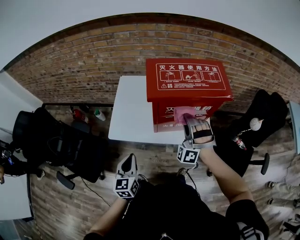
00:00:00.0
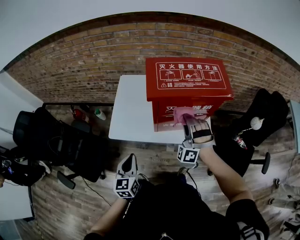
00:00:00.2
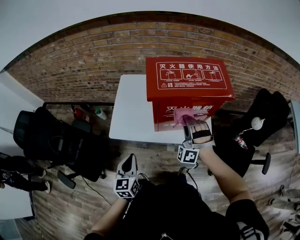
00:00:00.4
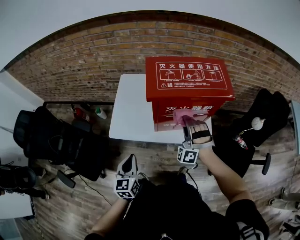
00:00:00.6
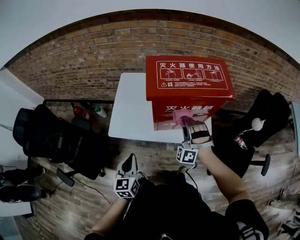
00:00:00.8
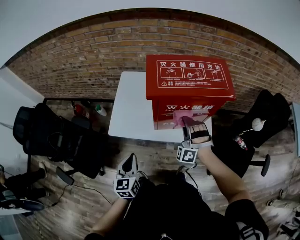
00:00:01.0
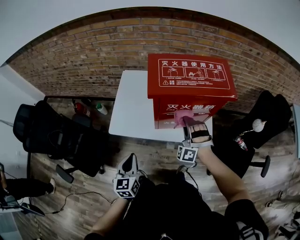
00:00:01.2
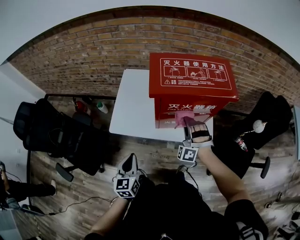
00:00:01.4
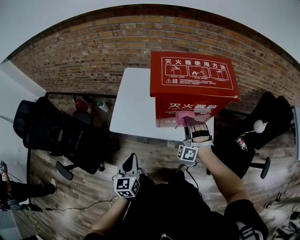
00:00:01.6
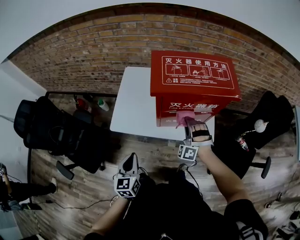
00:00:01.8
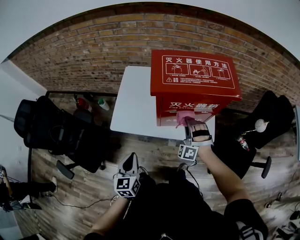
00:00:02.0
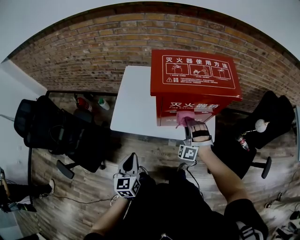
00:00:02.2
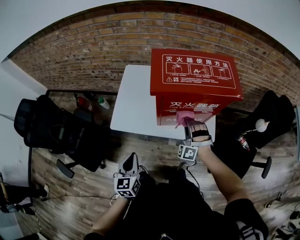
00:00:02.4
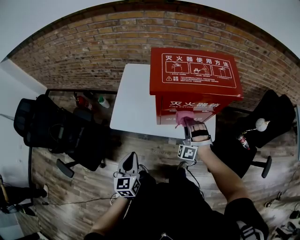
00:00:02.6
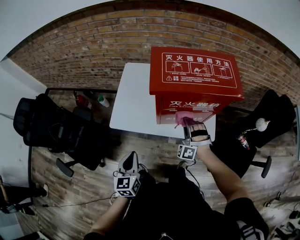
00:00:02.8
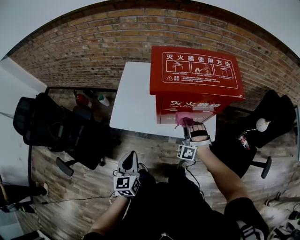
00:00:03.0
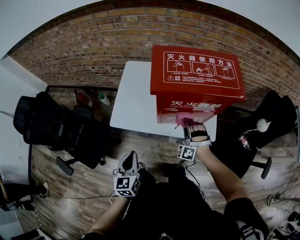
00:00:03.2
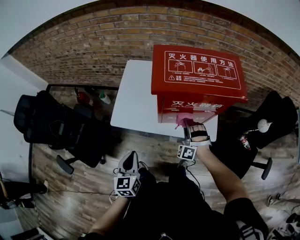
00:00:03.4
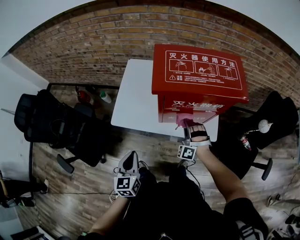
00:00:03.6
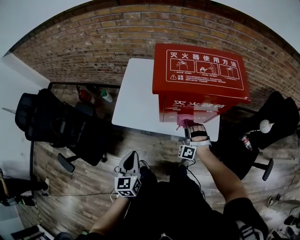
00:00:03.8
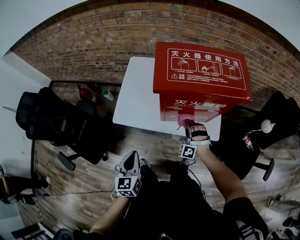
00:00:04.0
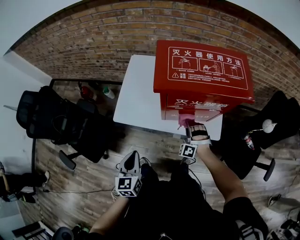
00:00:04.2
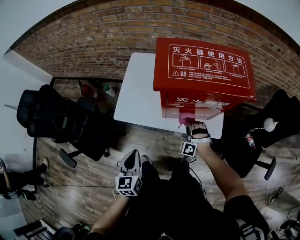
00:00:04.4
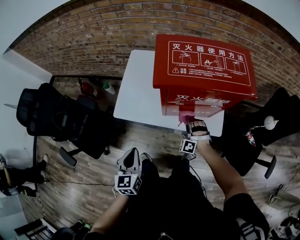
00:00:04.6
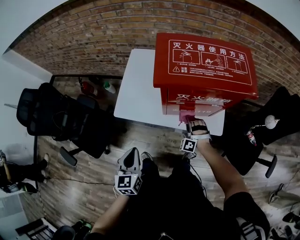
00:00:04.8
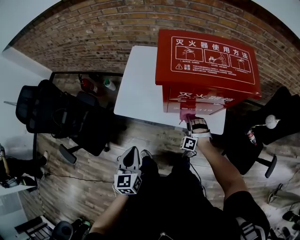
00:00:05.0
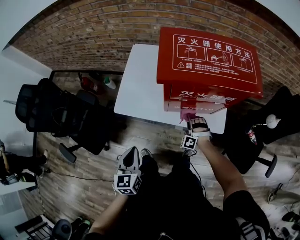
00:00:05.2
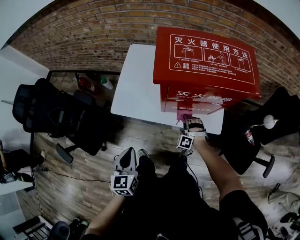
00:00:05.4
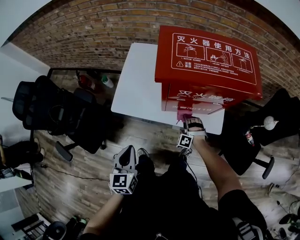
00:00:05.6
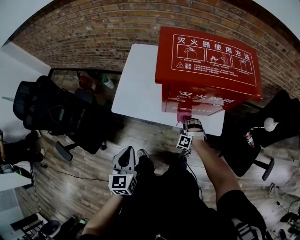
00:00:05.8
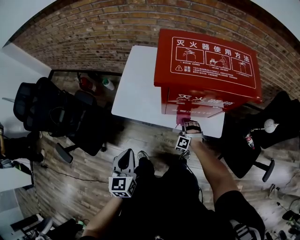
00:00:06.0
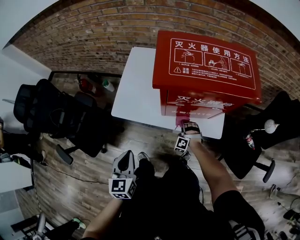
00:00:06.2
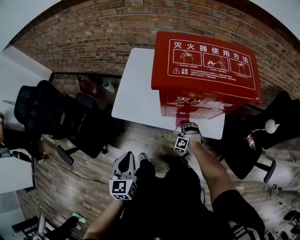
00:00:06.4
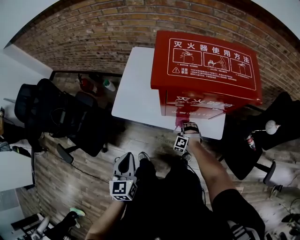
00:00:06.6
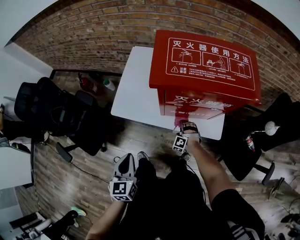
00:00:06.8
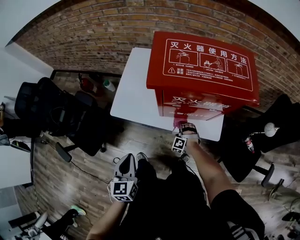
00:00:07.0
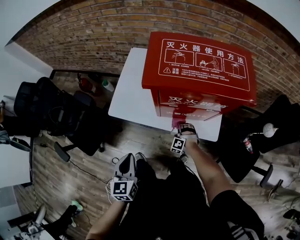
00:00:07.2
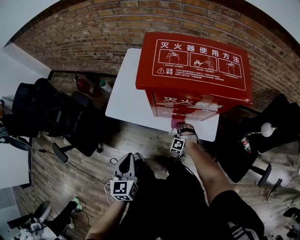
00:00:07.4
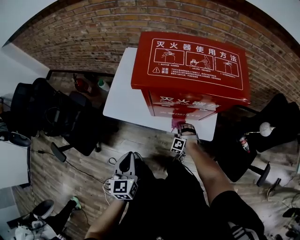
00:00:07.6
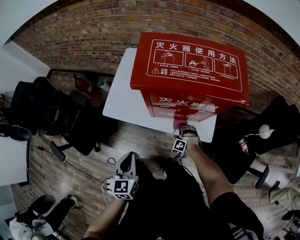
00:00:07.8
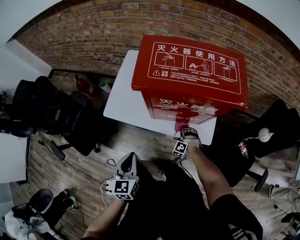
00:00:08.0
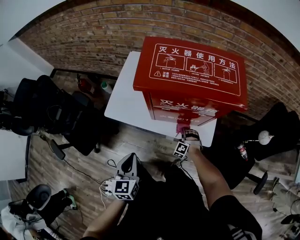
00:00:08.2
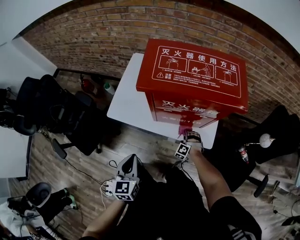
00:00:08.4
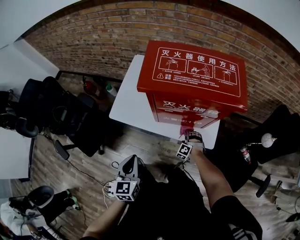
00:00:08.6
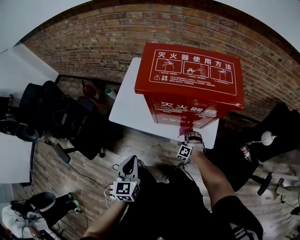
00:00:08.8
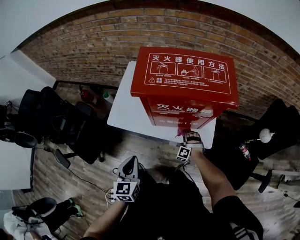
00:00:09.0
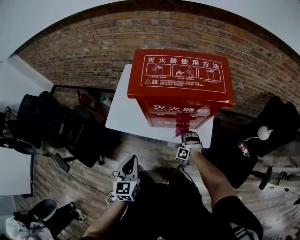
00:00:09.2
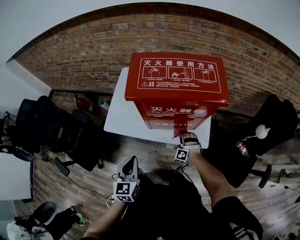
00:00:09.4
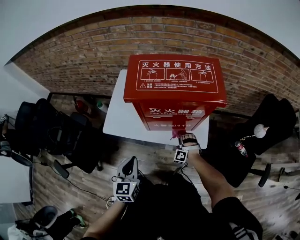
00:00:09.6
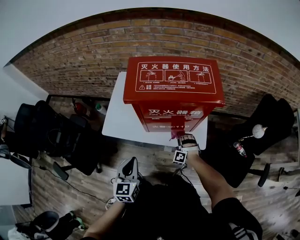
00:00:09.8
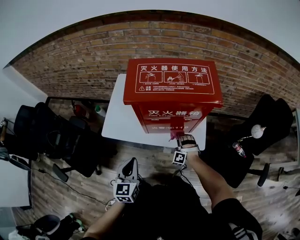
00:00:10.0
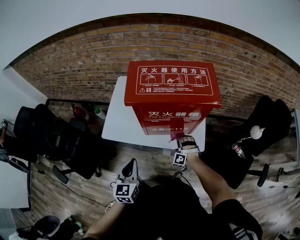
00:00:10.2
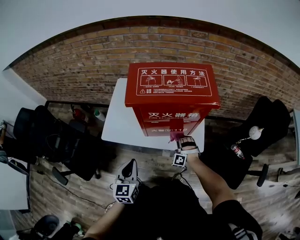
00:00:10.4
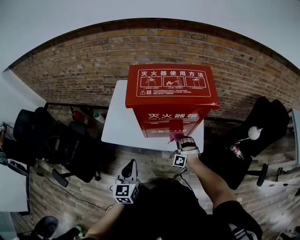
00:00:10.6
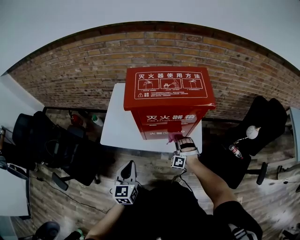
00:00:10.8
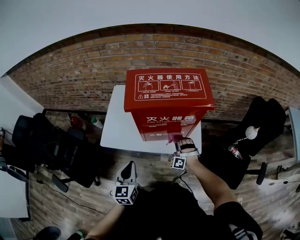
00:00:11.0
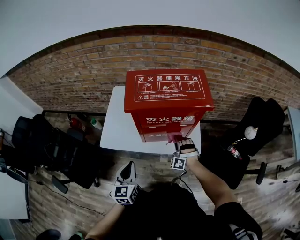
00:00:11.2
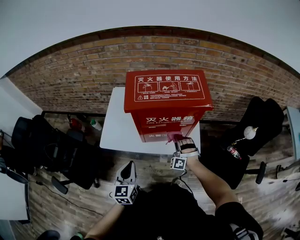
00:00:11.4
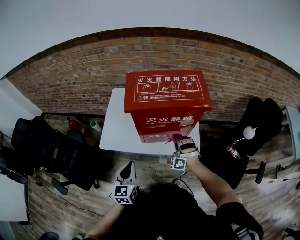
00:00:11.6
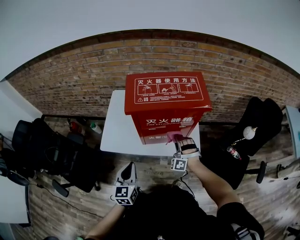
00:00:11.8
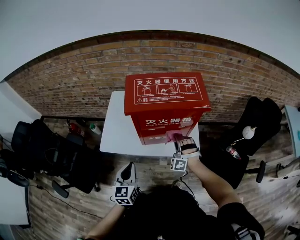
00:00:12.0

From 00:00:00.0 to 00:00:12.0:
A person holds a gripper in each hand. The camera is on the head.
From 00:00:06.0 to 00:00:07.6: The left gripper ends up some 5 cm from where it was.

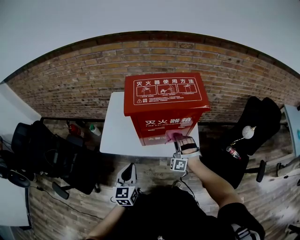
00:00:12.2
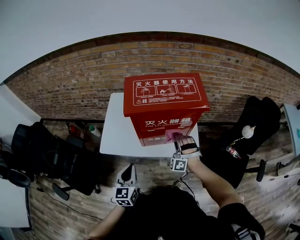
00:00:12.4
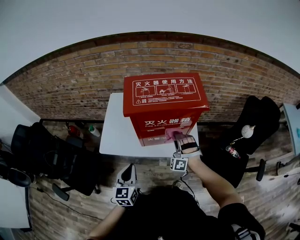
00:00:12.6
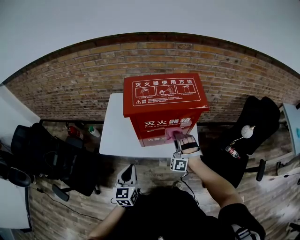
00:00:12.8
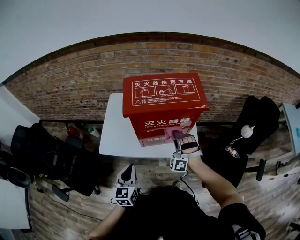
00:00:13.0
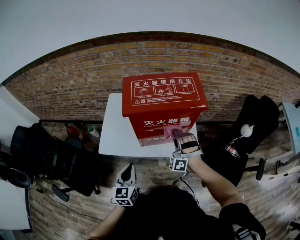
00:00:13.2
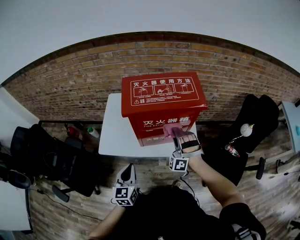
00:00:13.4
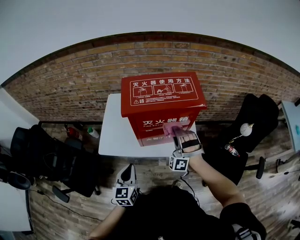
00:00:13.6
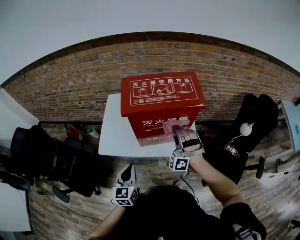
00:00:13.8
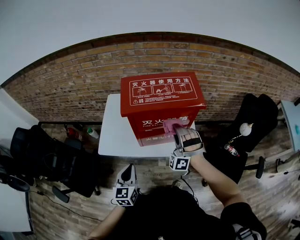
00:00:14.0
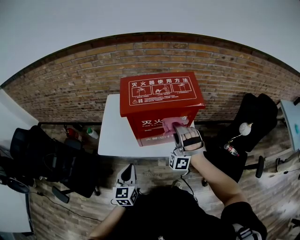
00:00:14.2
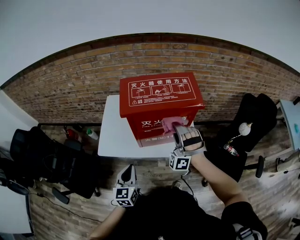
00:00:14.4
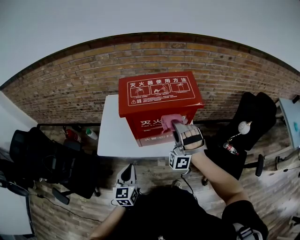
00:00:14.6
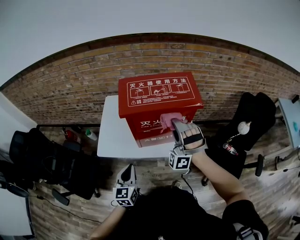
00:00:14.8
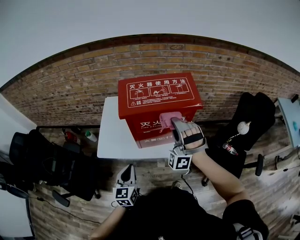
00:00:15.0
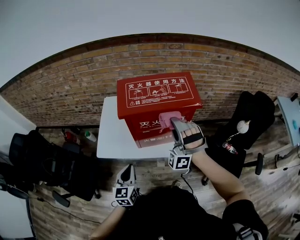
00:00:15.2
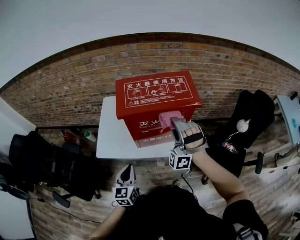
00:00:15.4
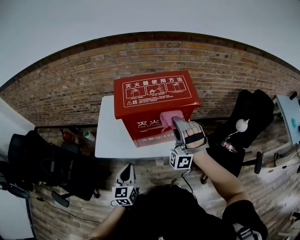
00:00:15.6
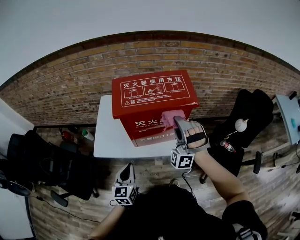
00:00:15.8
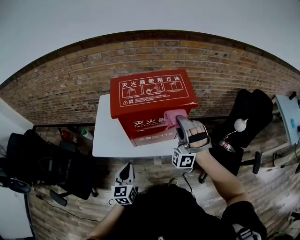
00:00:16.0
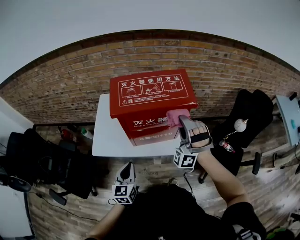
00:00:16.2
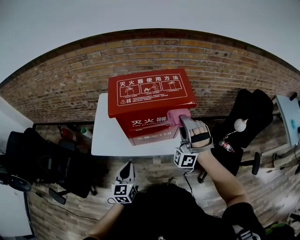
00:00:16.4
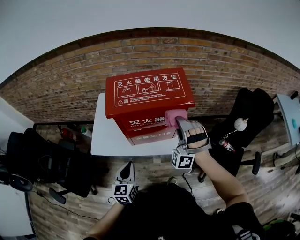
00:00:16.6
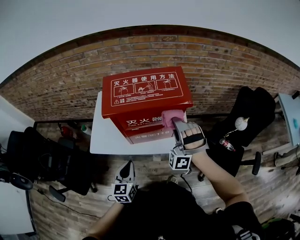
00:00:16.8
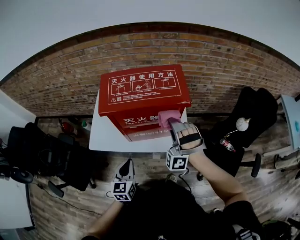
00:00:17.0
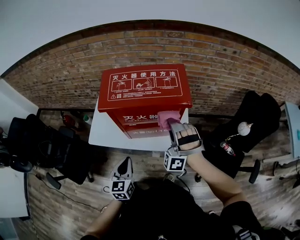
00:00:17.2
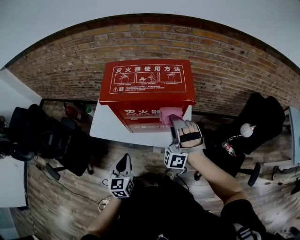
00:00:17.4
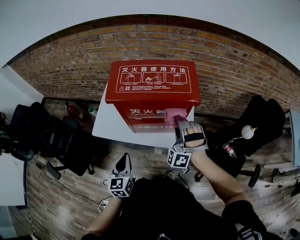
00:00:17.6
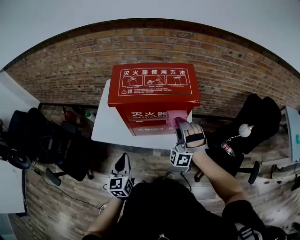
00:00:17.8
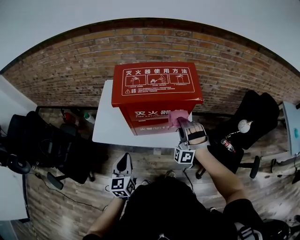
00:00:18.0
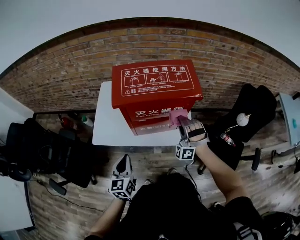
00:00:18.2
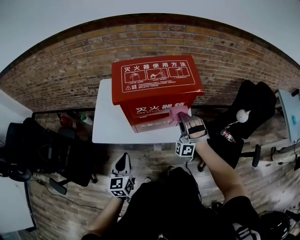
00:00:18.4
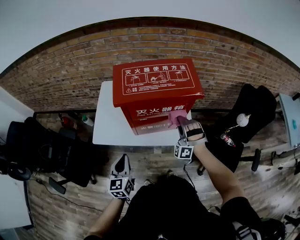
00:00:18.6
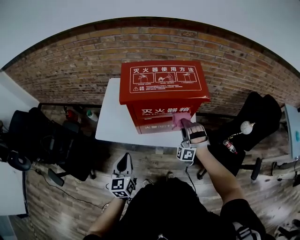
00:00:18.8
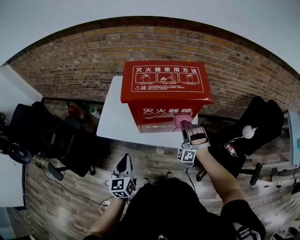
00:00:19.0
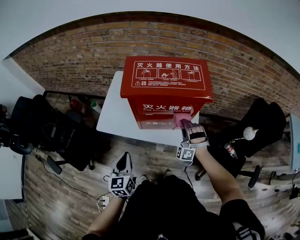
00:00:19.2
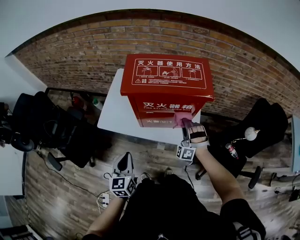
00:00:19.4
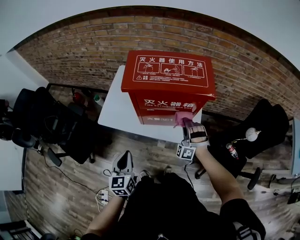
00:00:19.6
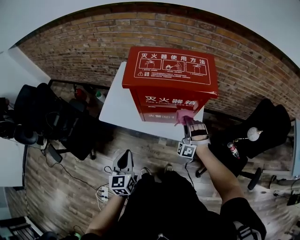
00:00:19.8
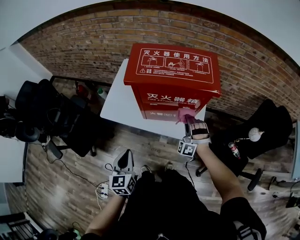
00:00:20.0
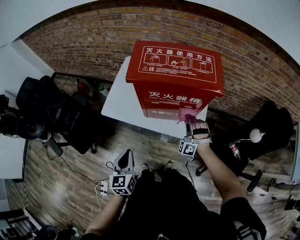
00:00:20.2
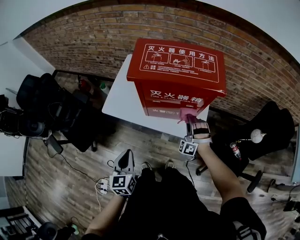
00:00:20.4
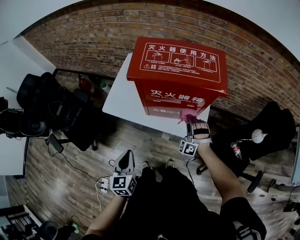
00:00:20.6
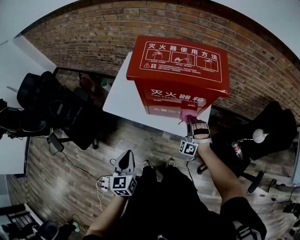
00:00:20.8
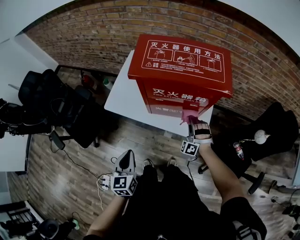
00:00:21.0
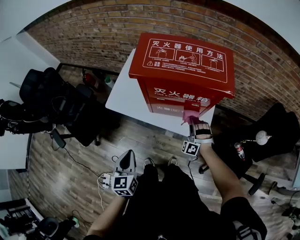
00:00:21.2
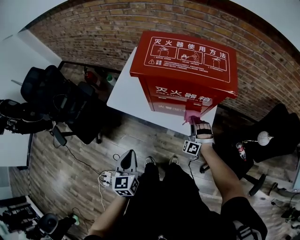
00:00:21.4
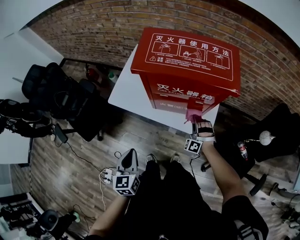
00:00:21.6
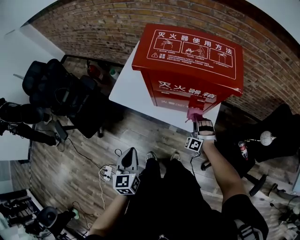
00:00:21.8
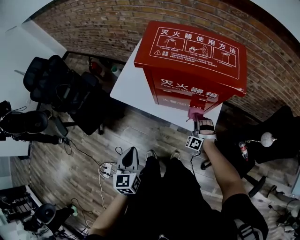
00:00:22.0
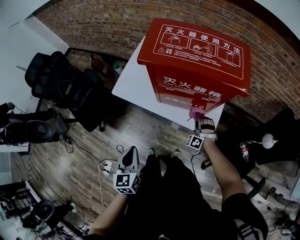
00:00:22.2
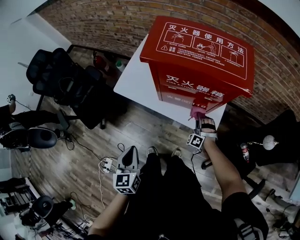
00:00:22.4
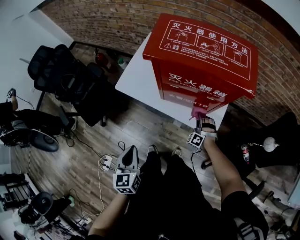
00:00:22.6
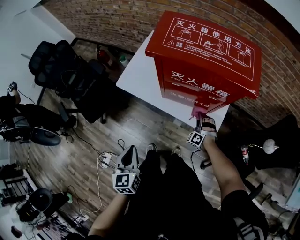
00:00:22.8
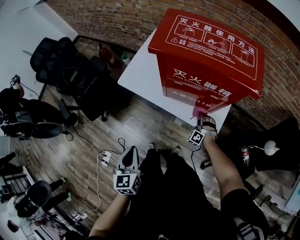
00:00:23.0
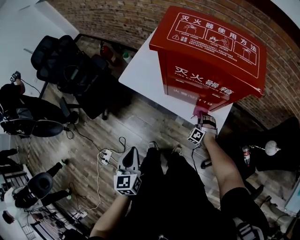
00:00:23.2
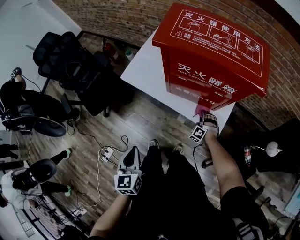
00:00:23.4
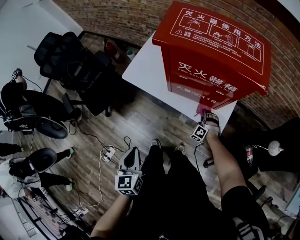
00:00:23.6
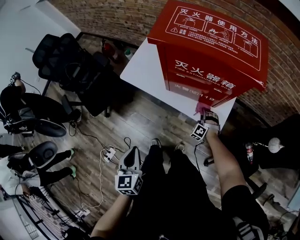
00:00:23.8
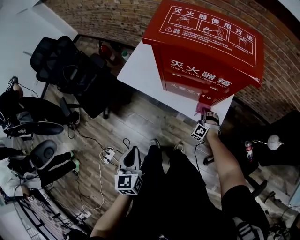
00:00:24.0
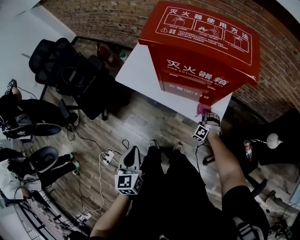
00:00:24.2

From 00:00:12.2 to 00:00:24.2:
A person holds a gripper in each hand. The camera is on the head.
From 00:00:18.2 to 00:00:19.8: The left gripper changes place by some 5 cm.
From 00:00:22.6 to 00:00:24.2: The left gripper moves about 5 cm.

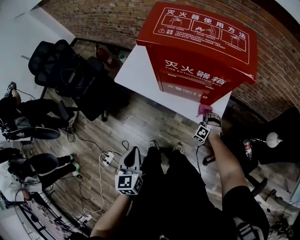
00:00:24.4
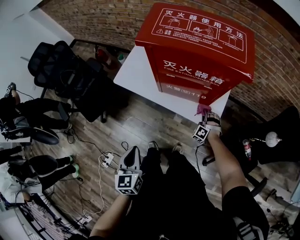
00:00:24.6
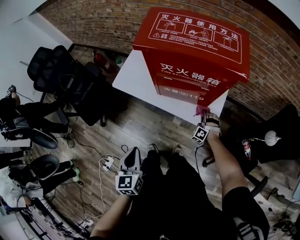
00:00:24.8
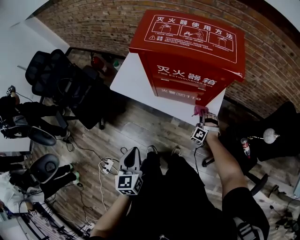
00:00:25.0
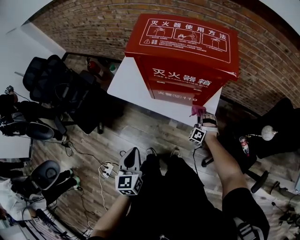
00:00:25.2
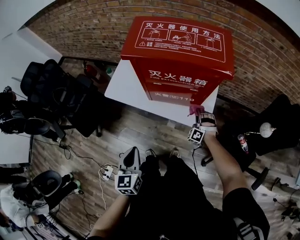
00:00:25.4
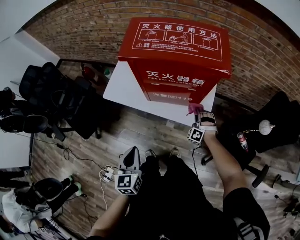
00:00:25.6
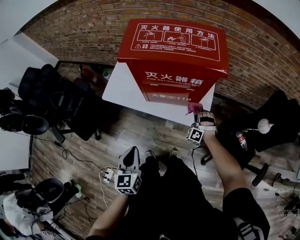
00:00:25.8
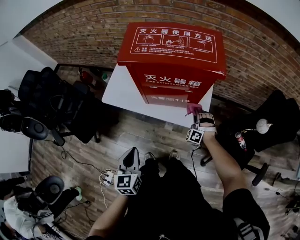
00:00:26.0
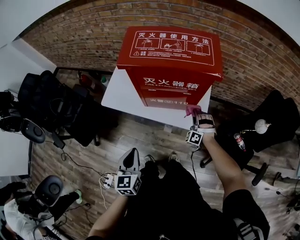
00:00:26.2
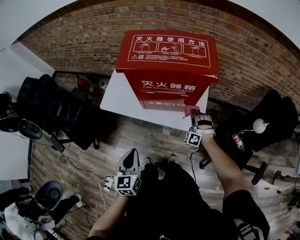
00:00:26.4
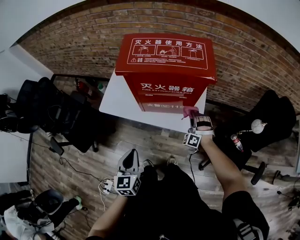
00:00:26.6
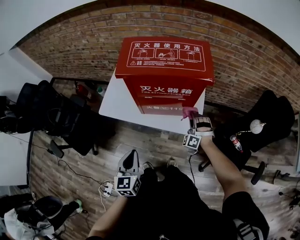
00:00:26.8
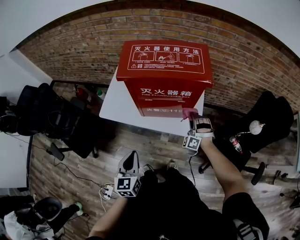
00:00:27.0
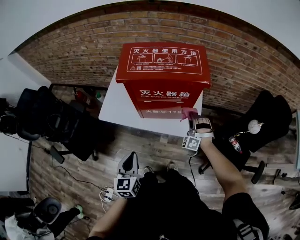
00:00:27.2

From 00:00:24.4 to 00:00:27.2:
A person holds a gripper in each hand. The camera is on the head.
From 00:00:24.4 to 00:00:25.8: The left gripper ends up roughly 5 cm from where it was.
